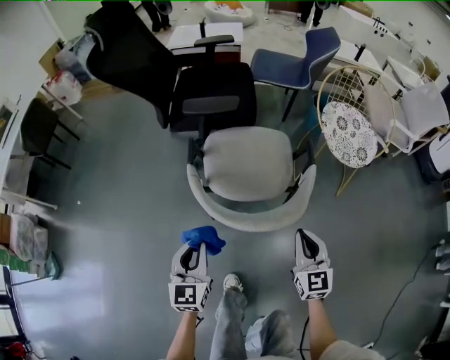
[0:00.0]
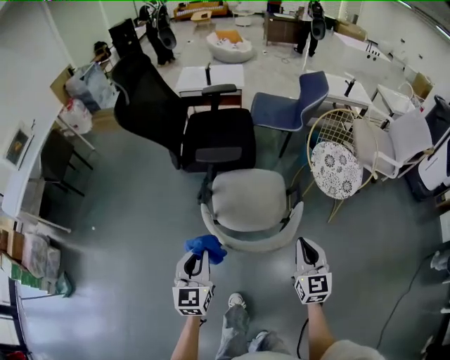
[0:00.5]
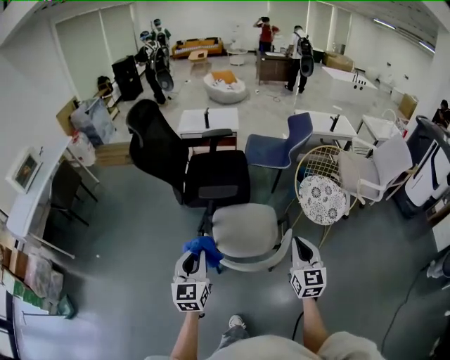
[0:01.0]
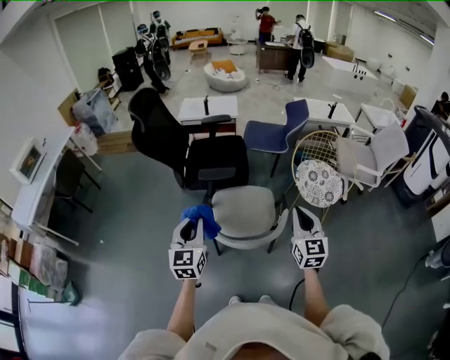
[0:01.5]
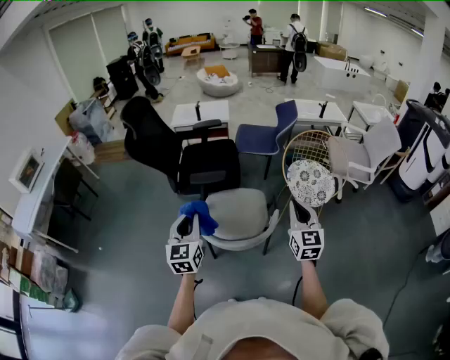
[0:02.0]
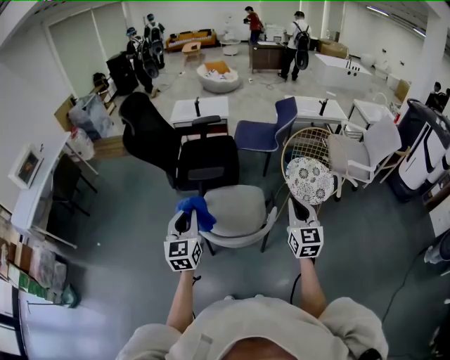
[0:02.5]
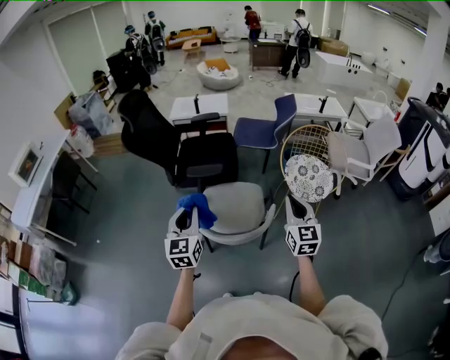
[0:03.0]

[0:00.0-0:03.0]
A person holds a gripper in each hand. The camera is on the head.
0:00.0 to 0:01.5: The grippers both shift upward by about 35 cm.
0:01.5 to 0:03.0: Both grippers move to the right, some 5 cm.

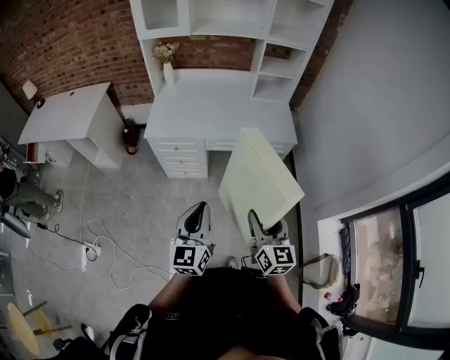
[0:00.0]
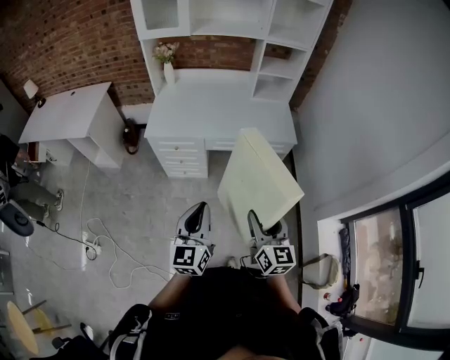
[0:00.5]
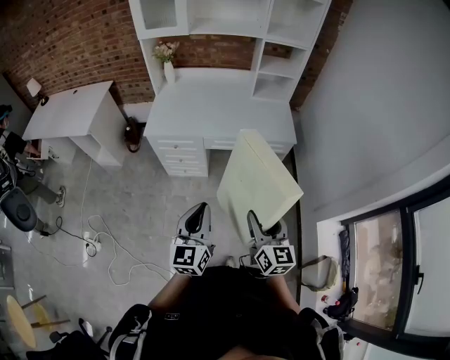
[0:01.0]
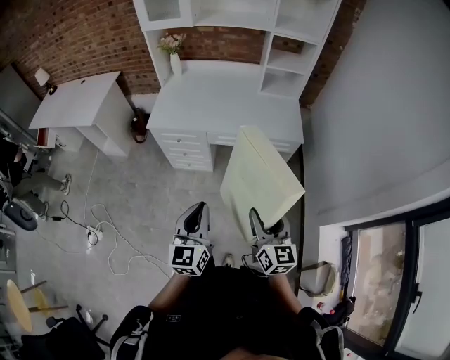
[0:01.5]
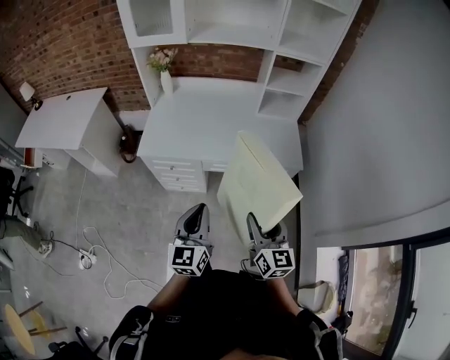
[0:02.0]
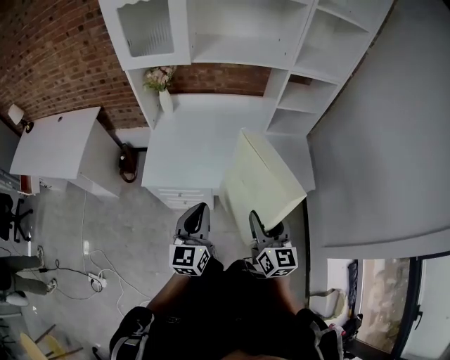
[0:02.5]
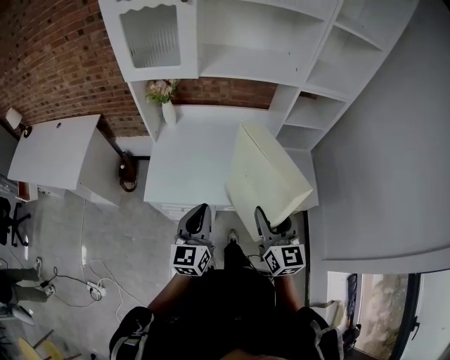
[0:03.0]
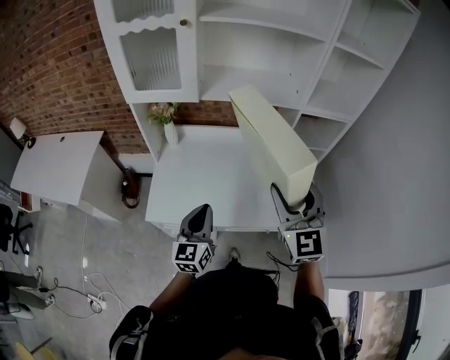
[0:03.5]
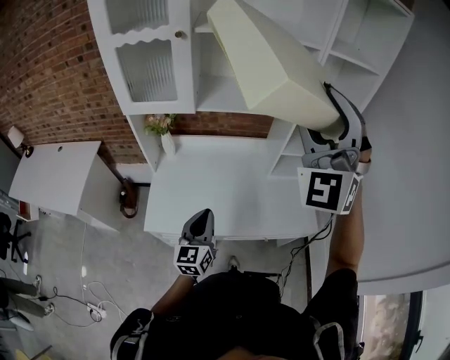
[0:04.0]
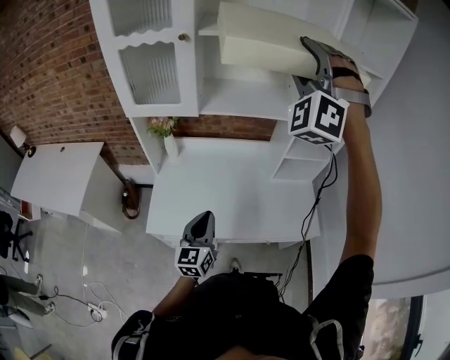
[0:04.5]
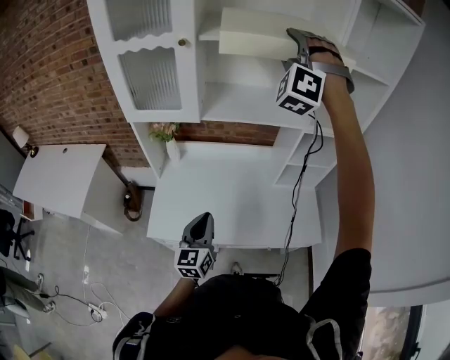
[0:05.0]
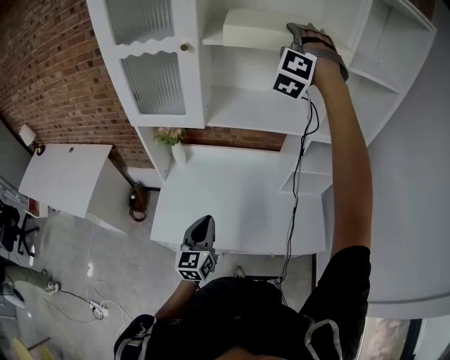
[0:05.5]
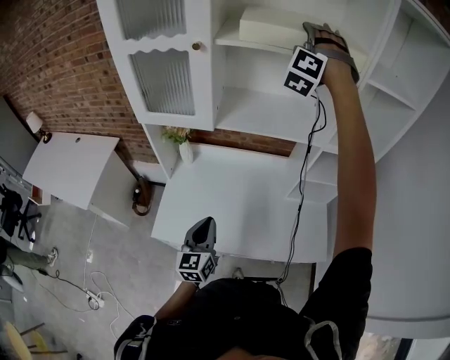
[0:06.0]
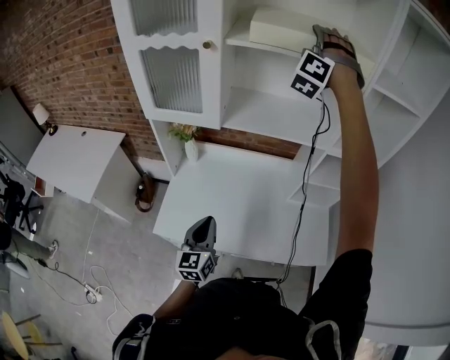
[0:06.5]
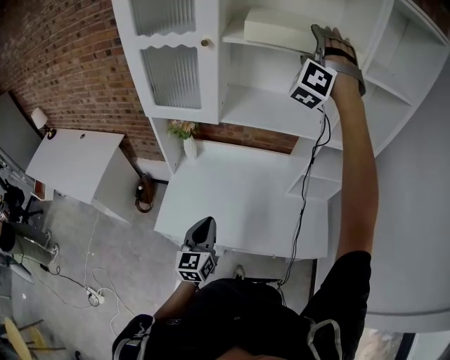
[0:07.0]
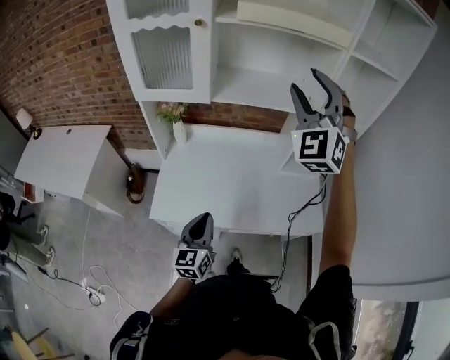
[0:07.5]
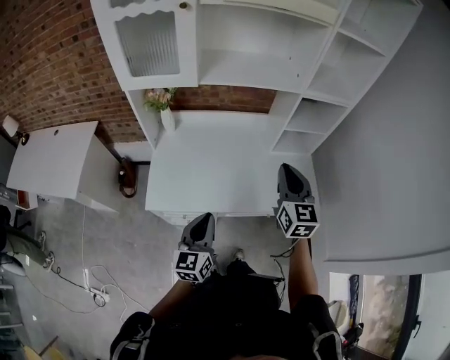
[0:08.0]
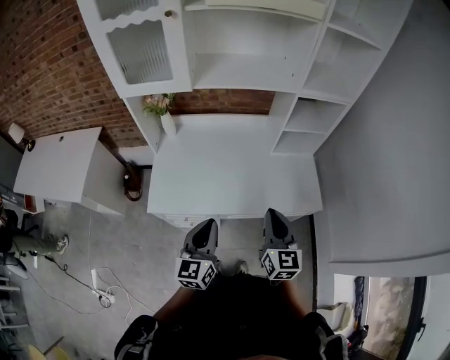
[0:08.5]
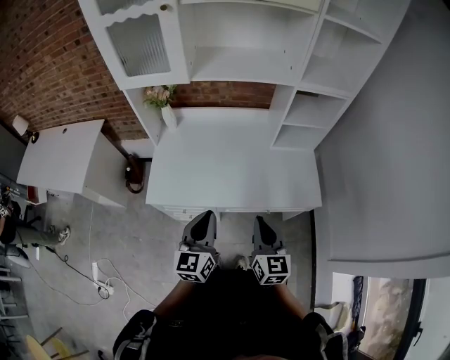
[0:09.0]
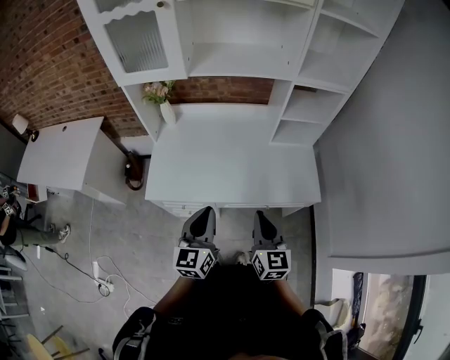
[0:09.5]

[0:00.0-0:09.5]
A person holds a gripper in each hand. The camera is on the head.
0:00.0 to 0:02.0: Both grippers travel together forward, roughly 15 cm.
0:02.0 to 0:04.0: The left gripper moves forward, roughly 35 cm, while the right gripper moves upward and forward, some 60 cm, and rolls counterclockwise, seen from behind, by about 80 degrees.
0:04.0 to 0:05.5: The left gripper changes place by some 5 cm. The right gripper moves forward, about 30 cm, and swivels some 40 degrees.
0:05.5 to 0:07.5: The right gripper heads backward, covering some 20 cm, and swivels some 40 degrees; the left gripper is displaced backward by roughly 10 cm.
0:07.5 to 0:09.5: The left gripper heads backward and to the right, covering about 10 cm; the right gripper travels downward and backward by some 50 cm, twists roughly 70 degrees clockwise, seen from behind, and closes.

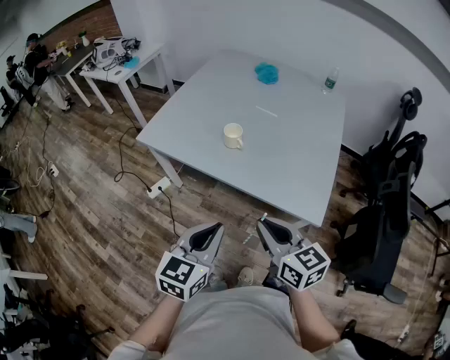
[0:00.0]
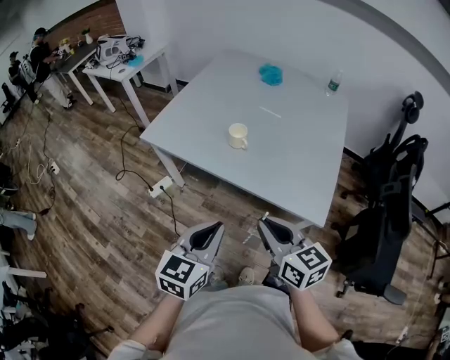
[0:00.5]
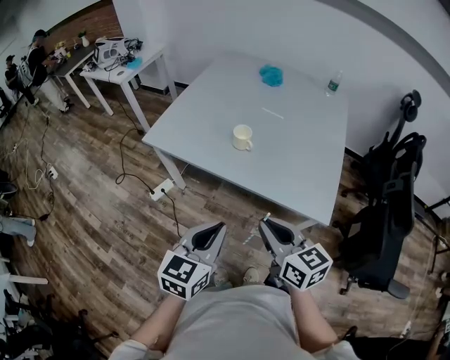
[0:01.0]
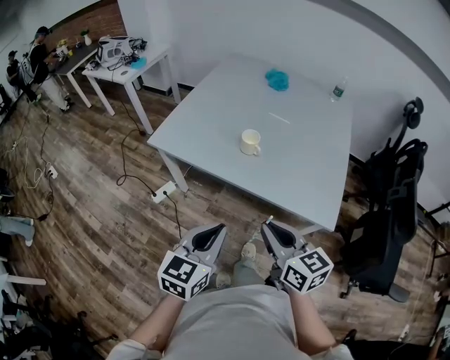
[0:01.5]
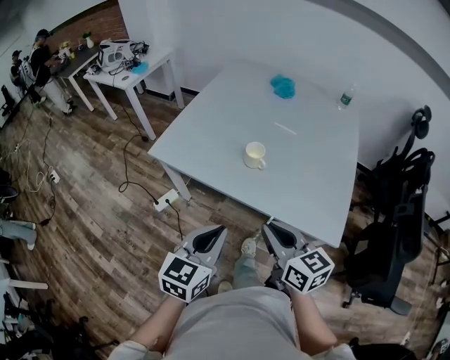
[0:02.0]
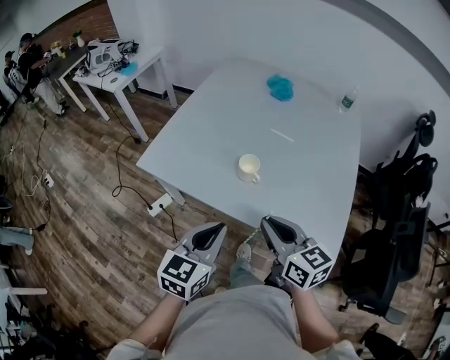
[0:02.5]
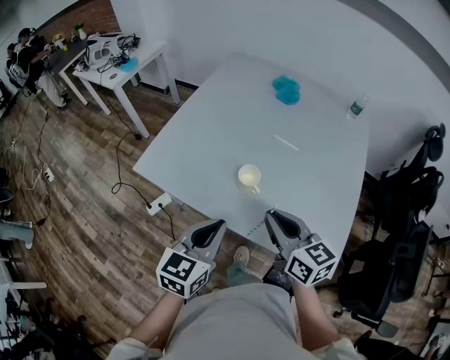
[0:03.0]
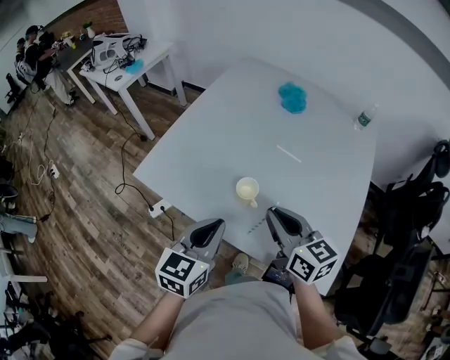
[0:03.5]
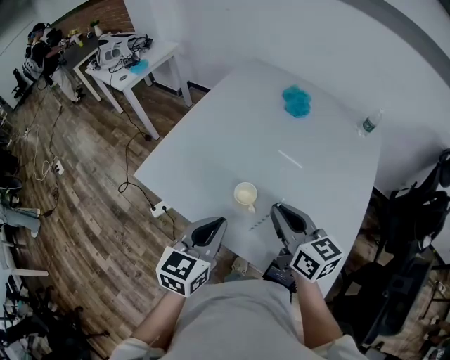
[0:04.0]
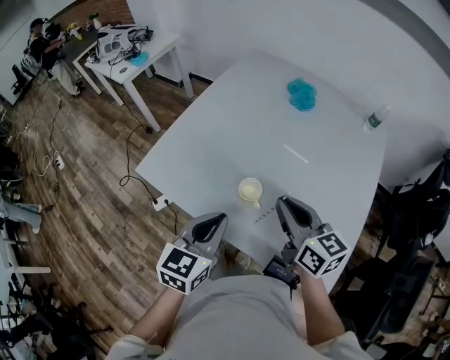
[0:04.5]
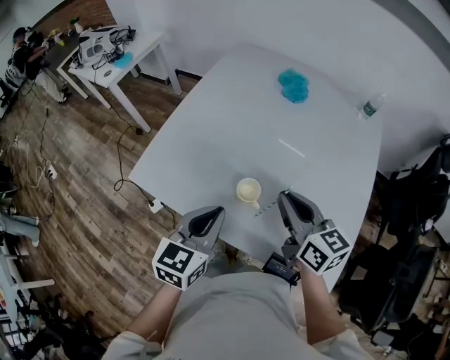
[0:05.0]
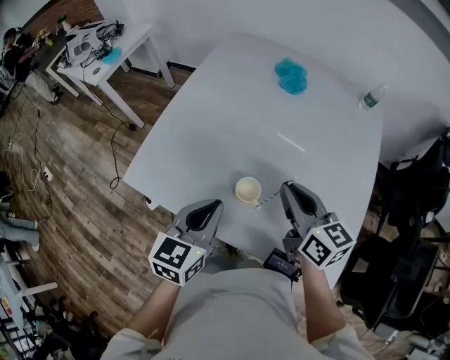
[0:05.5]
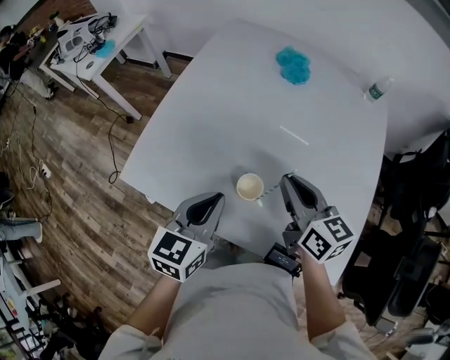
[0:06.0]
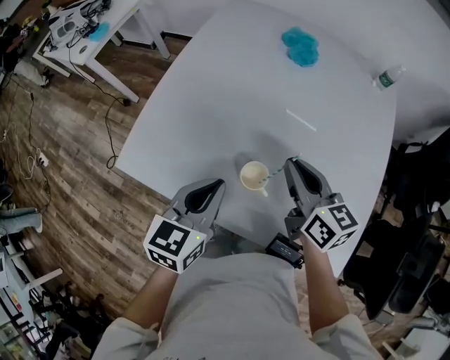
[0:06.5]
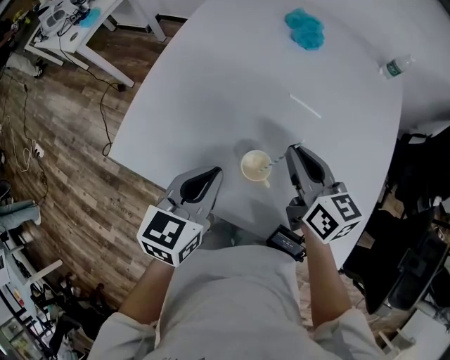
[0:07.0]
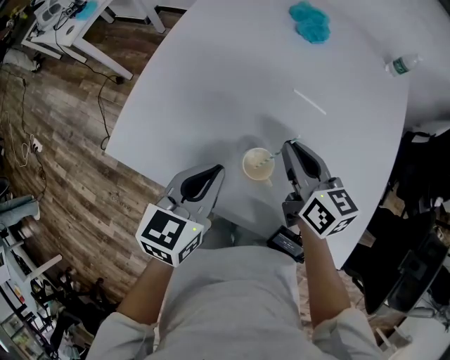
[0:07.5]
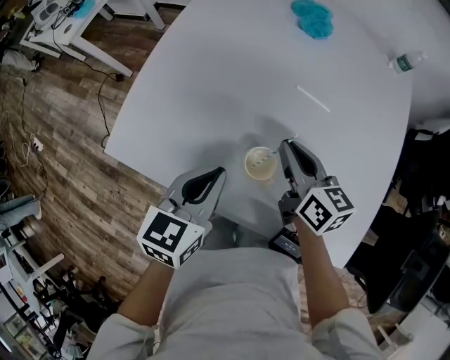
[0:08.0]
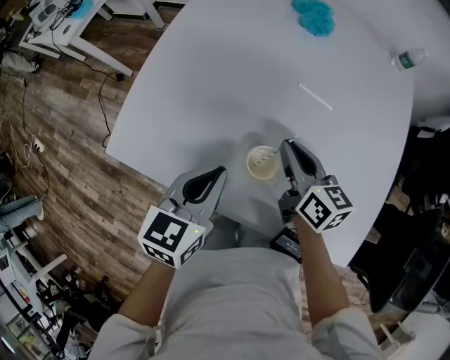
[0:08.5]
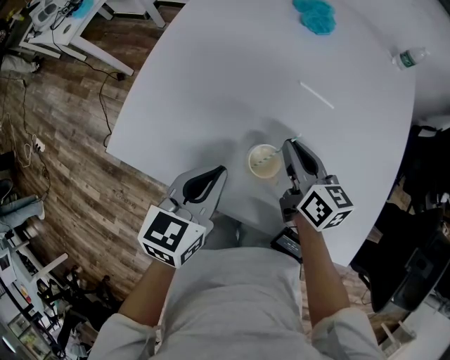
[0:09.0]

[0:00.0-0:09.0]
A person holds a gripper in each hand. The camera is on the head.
0:00.0 to 0:02.0: The two grippers go approximately 10 cm to the left and forward.
0:02.0 to 0:04.5: Both grippers travel together forward, approximately 25 cm.
0:04.5 to 0:07.0: The grippers both shift forward and downward by about 15 cm.
0:07.0 to 0:09.0: The right gripper is displaced downward by some 10 cm.

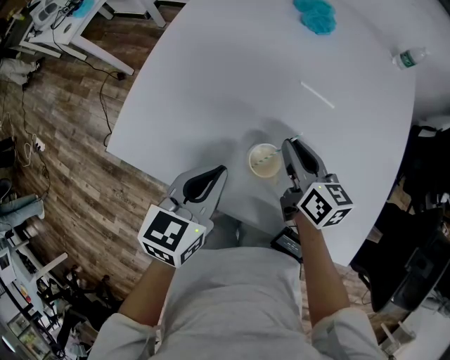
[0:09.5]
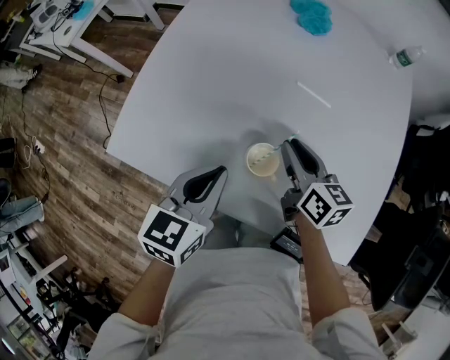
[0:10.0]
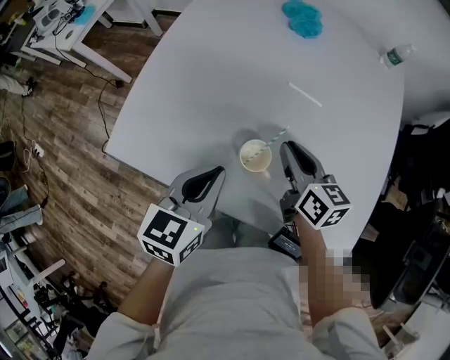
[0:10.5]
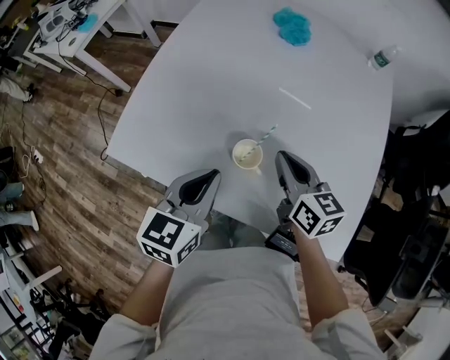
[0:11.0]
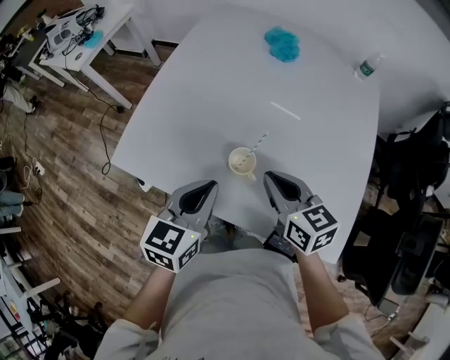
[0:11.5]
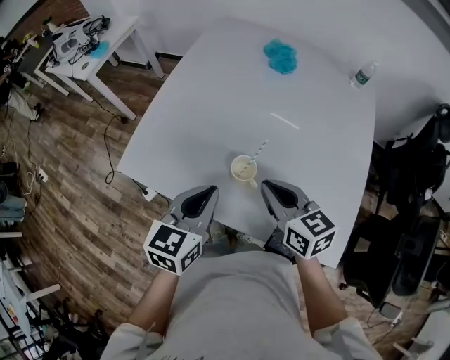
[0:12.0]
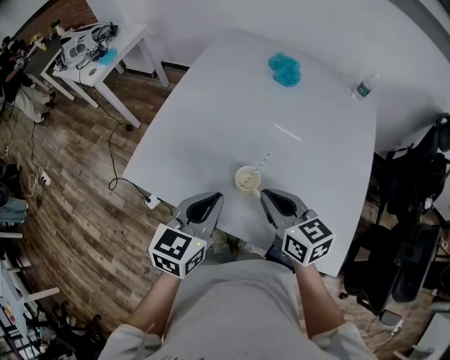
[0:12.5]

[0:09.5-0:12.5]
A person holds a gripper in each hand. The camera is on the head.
0:09.5 to 0:11.0: The left gripper changes place by approximately 5 cm. Meanwhile the right gripper is displaced backward by roughly 5 cm.
0:11.0 to 0:12.5: The left gripper ends up approximately 5 cm from where it was; the right gripper moves upward and backward, approximately 10 cm.

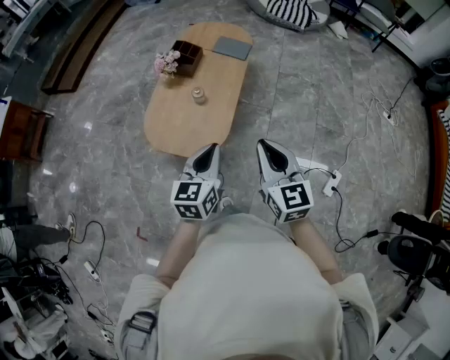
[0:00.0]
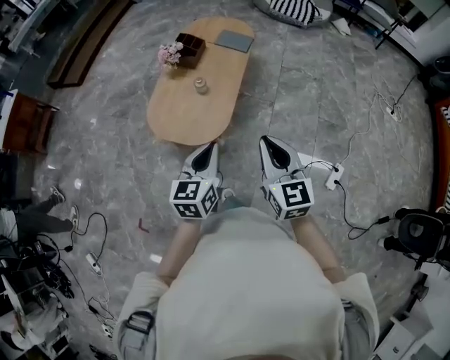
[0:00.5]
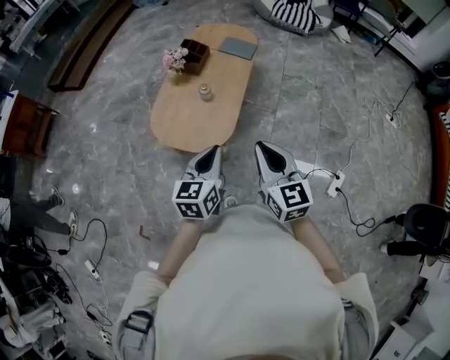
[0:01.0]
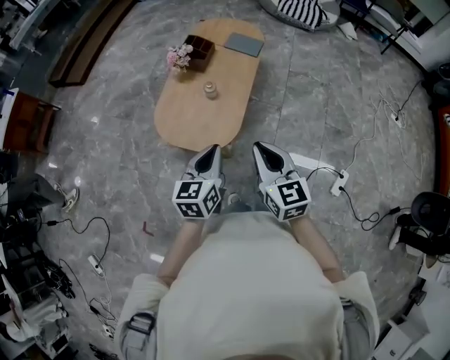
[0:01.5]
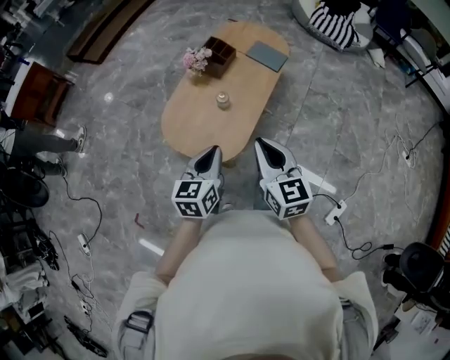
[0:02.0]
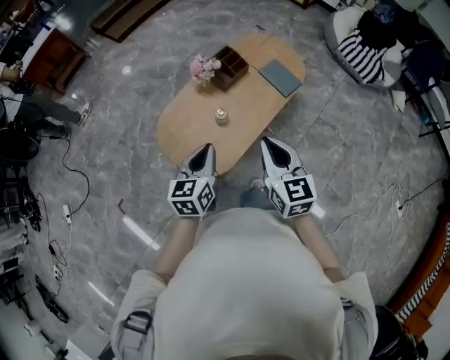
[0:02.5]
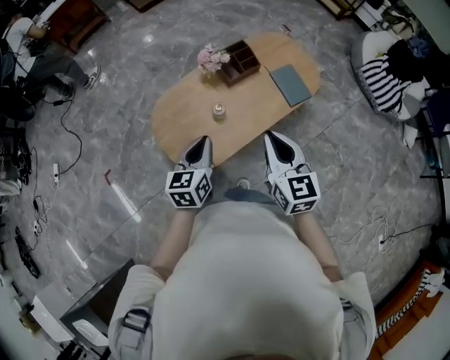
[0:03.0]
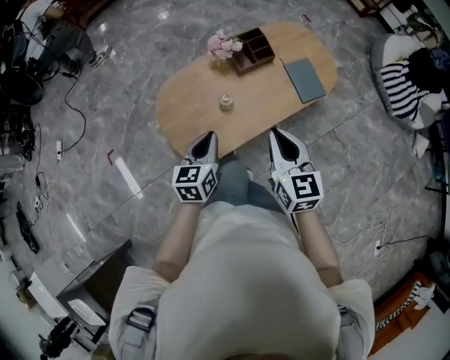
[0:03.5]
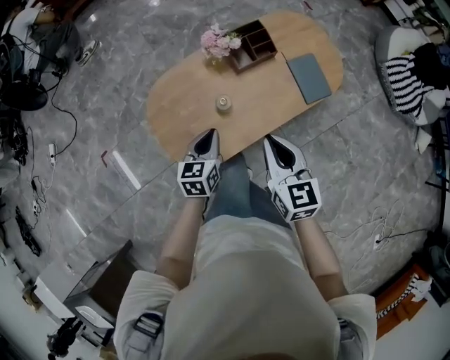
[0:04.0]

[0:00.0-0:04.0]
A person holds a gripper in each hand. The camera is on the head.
0:00.0 to 0:02.0: The grippers both shift forward by about 10 cm.
0:02.0 to 0:04.0: The right gripper changes place by roughly 30 cm, and swivels approximately 30 degrees, while the left gripper moves about 30 cm, and swivels roughly 30 degrees.
